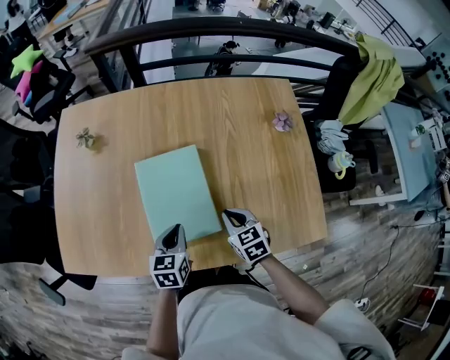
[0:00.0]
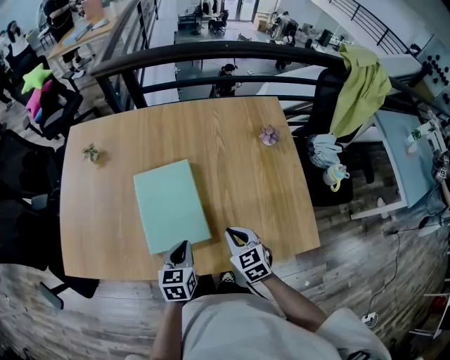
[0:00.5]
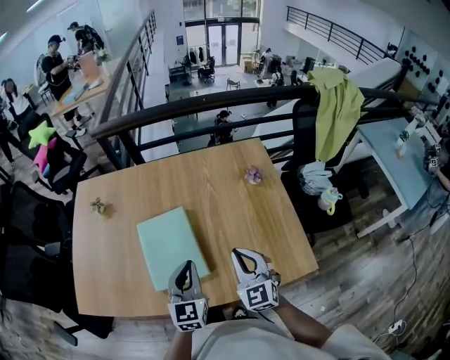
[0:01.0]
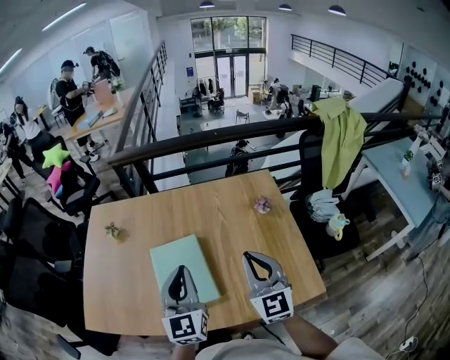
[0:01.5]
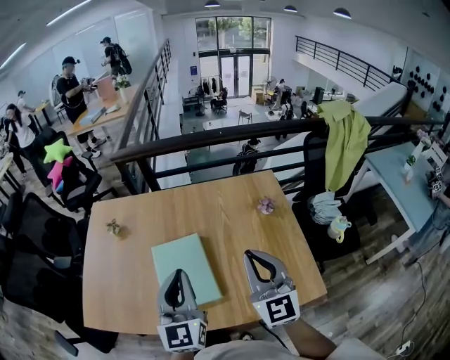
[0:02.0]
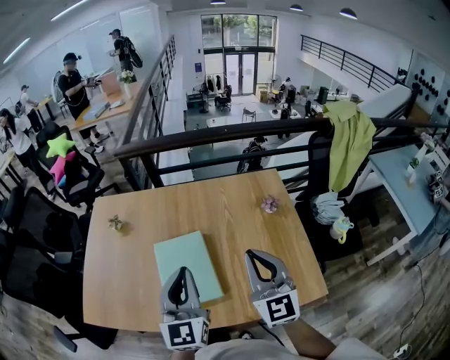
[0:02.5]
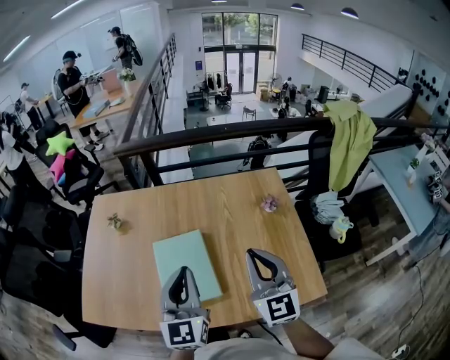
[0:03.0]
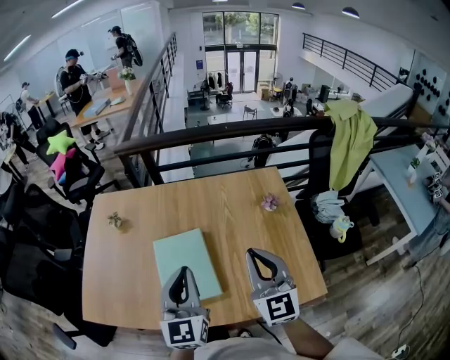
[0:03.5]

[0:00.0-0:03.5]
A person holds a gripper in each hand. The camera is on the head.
0:00.0 to 0:02.0: The two grippers go about 35 cm upward. The right gripper angles its fingers upward, by about 50 degrees. The left gripper angles its fingers upward, by approximately 40 degrees.
0:02.0 to 0:03.5: The grippers stay close to where they were, moving slightly.

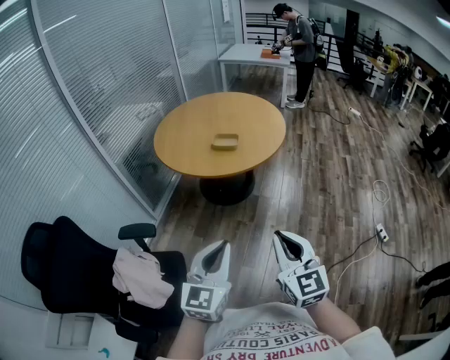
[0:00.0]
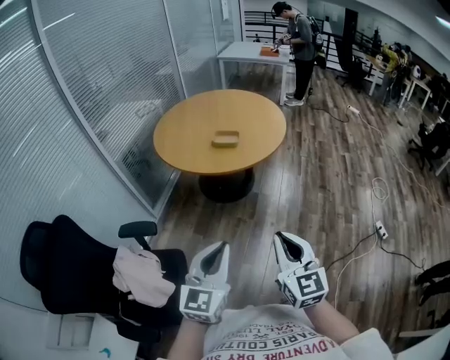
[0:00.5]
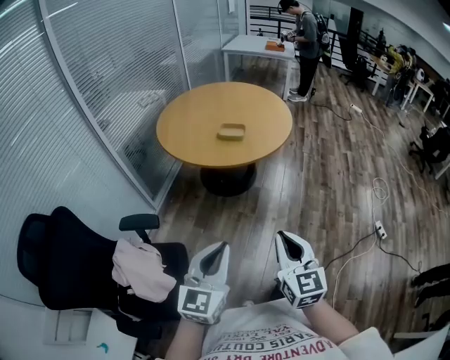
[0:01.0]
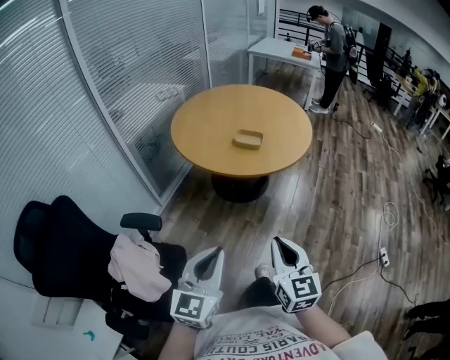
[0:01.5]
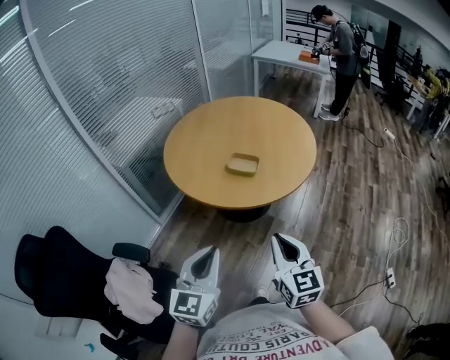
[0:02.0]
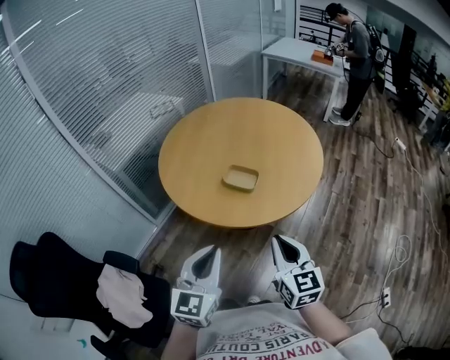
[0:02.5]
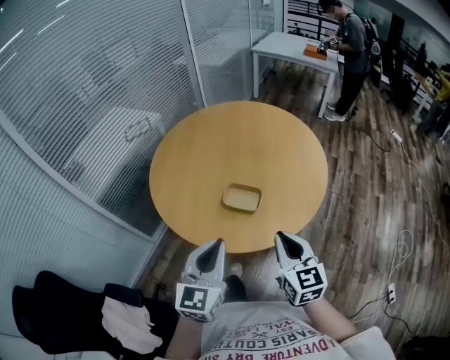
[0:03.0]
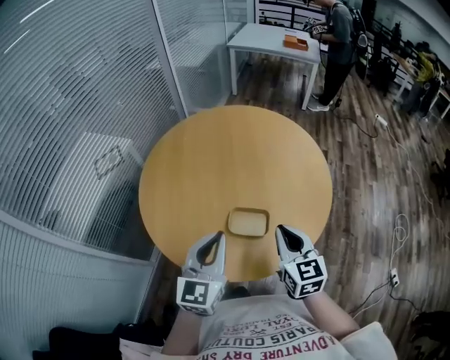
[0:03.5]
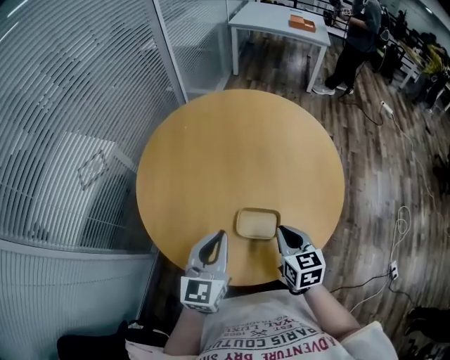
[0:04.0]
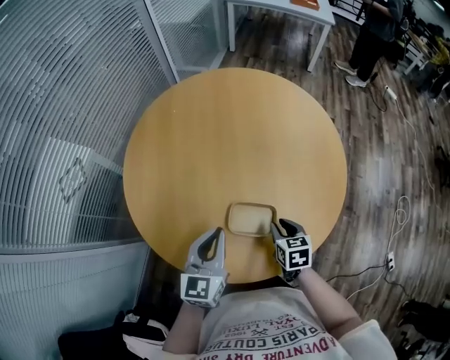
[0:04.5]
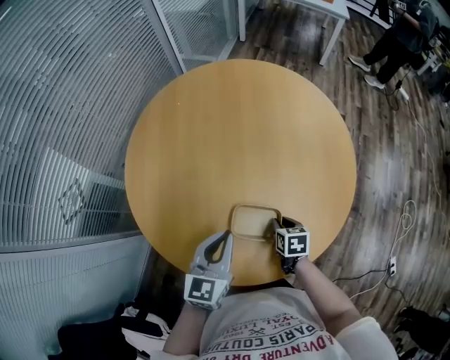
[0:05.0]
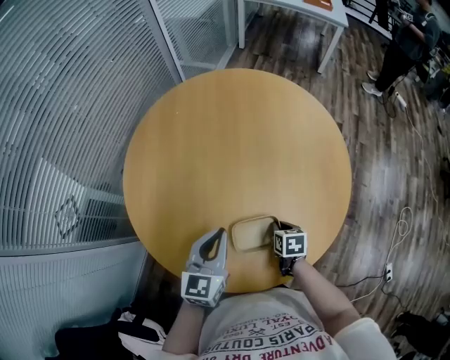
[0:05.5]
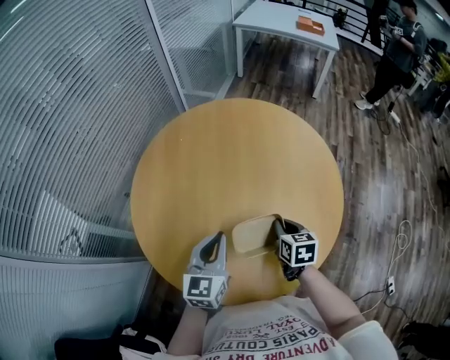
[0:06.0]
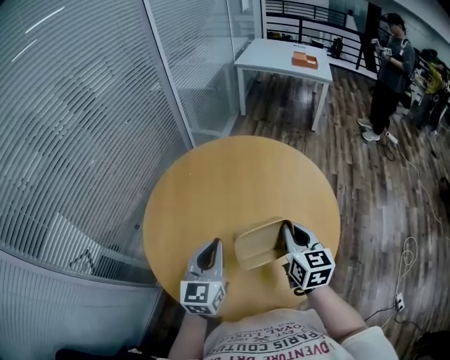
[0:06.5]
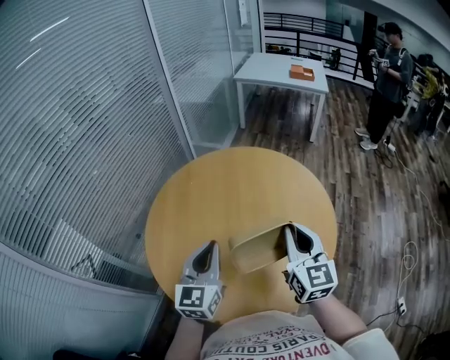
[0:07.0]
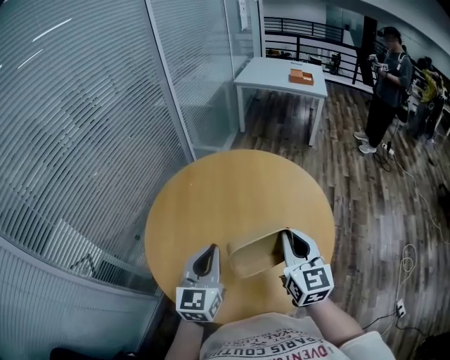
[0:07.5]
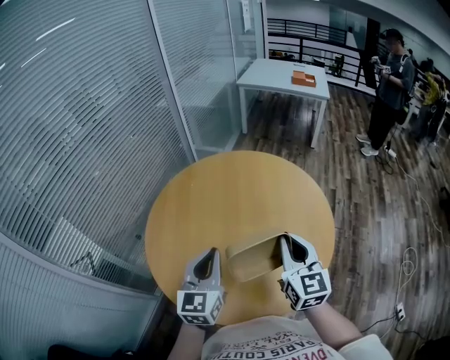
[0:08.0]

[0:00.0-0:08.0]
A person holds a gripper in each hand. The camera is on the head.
0:00.0 to 0:02.0: The two grippers go about 25 cm forward.
0:02.0 to 0:04.0: The two grippers travel together, forward, about 50 cm. The right gripper swivels some 30 degrees.
0:04.0 to 0:06.0: The right gripper moves forward, downward and to the right, about 15 cm, and opens, then closes once more. Meanwhile the left gripper heads forward and downward, covering about 10 cm.
0:06.0 to 0:08.0: The right gripper goes about 25 cm upward, and tilts its fingers roughly 40 degrees upward. The left gripper is displaced upward and backward by some 15 cm.

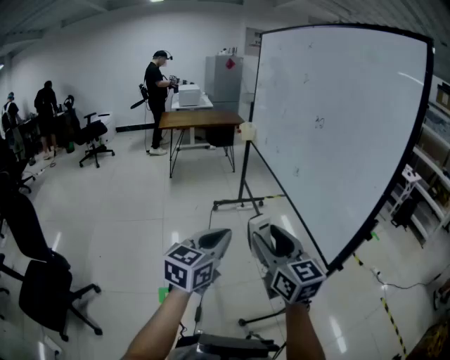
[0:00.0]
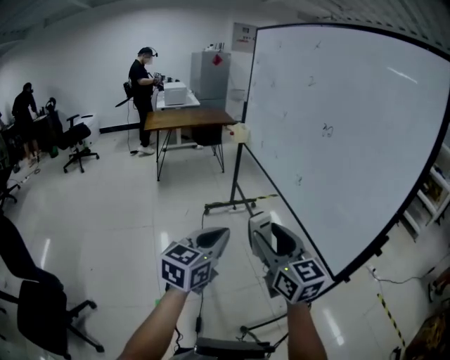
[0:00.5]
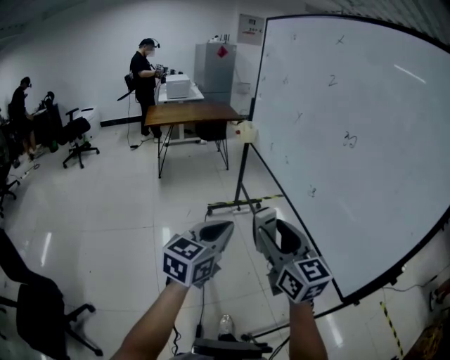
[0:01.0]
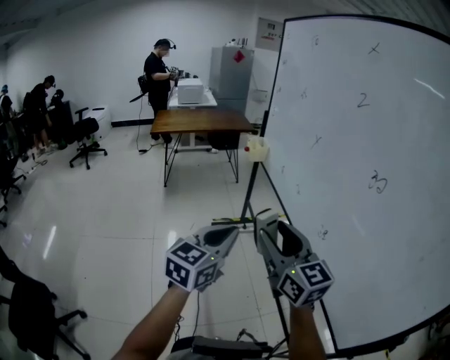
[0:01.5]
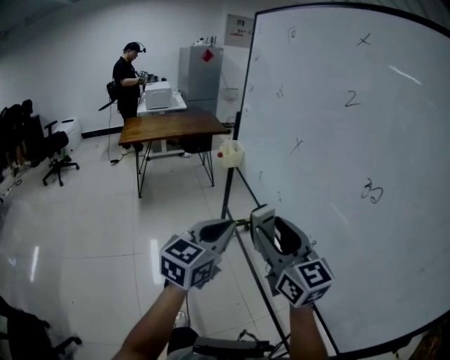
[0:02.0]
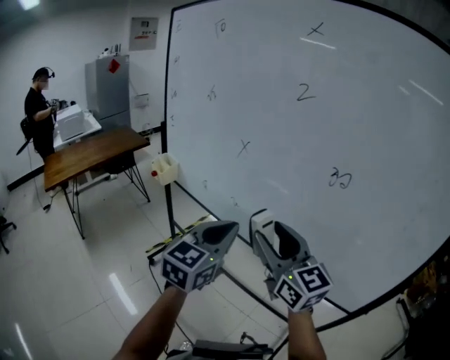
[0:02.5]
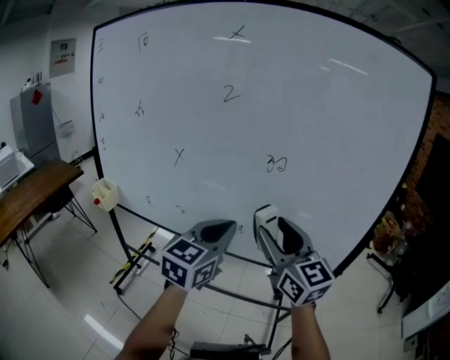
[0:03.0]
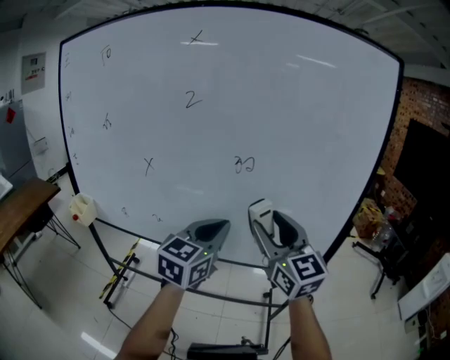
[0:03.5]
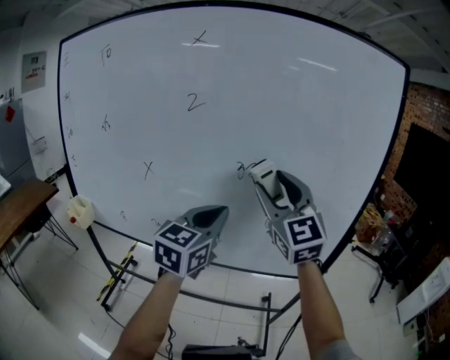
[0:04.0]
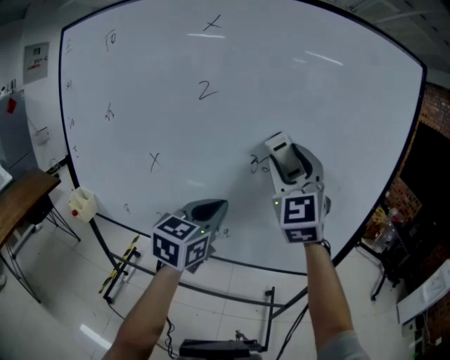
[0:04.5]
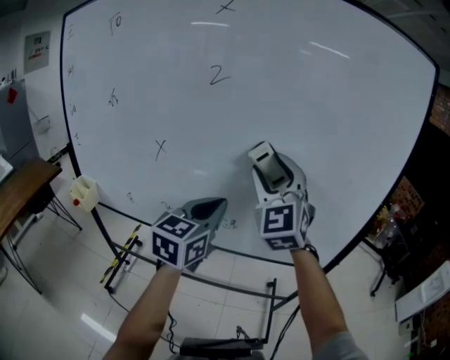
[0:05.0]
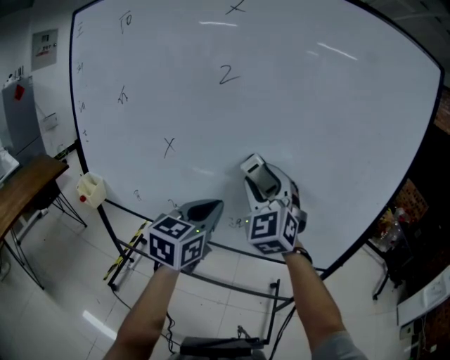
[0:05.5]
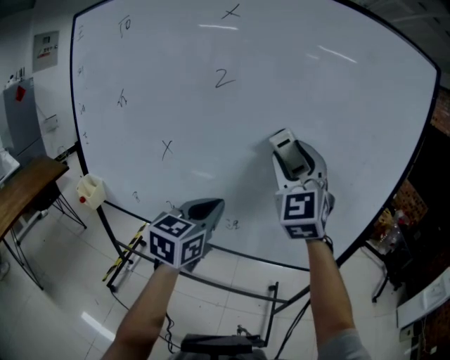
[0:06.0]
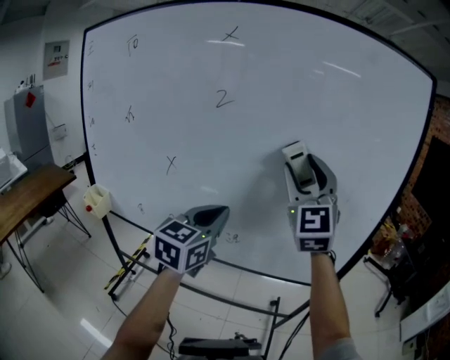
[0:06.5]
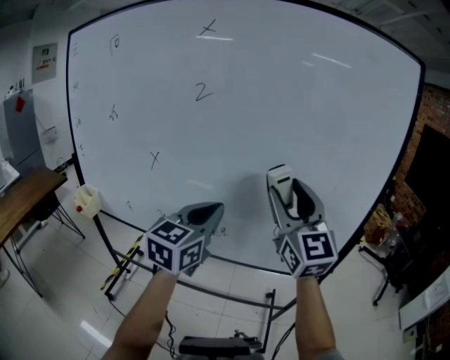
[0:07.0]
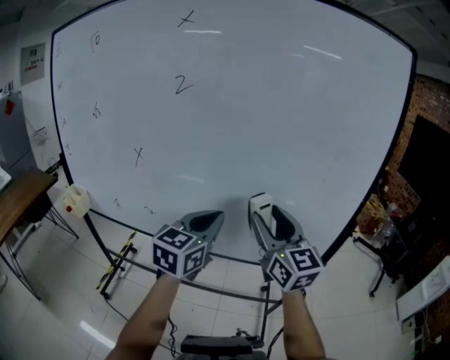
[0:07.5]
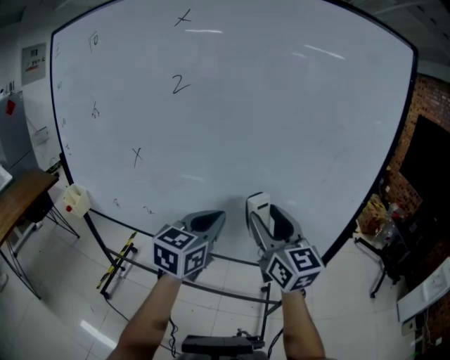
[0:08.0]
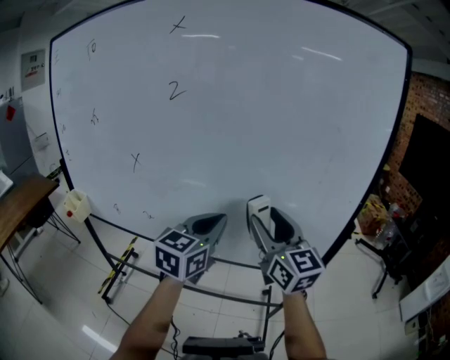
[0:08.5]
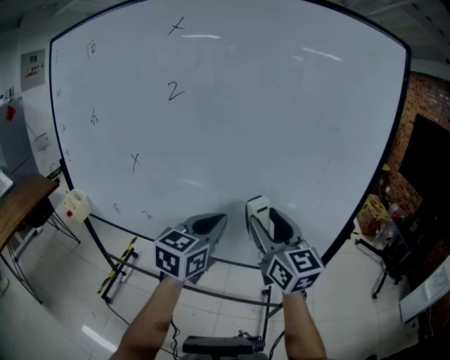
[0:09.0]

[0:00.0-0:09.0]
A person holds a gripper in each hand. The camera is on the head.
0:00.0 to 0:02.0: The two grippers travel together, forward, roughly 40 cm.
0:02.0 to 0:04.5: The left gripper changes place by about 20 cm, and swivels approximately 60 degrees, while the right gripper ends up about 30 cm from where it was, and rotates roughly 90 degrees.
0:04.5 to 0:07.0: The right gripper travels downward by about 5 cm, reaches roughly 10 cm to the left, then returns, and swivels about 30 degrees.
0:07.0 to 0:09.0: The left gripper goes roughly 5 cm to the right, while the right gripper shifts roughly 10 cm downward.

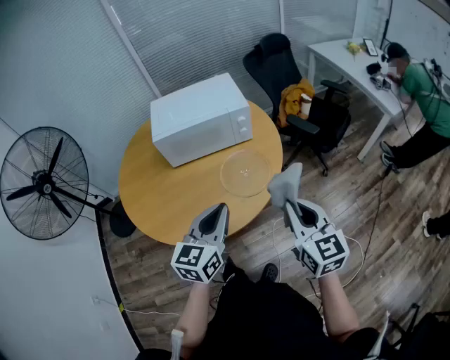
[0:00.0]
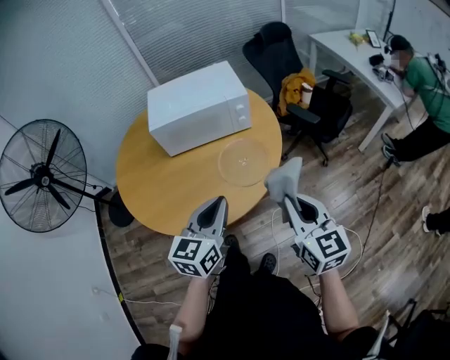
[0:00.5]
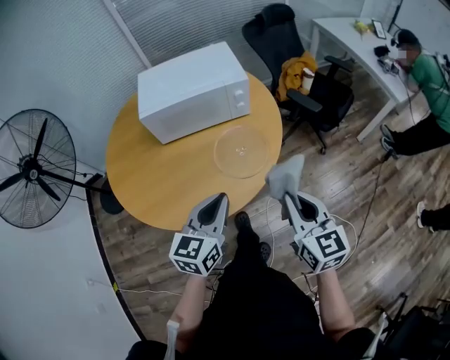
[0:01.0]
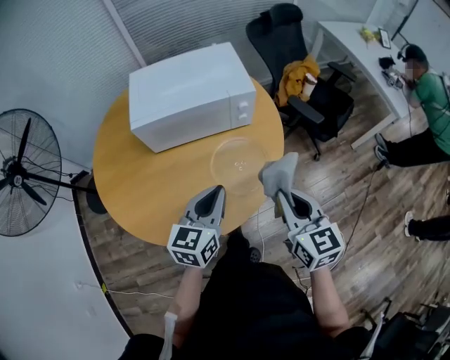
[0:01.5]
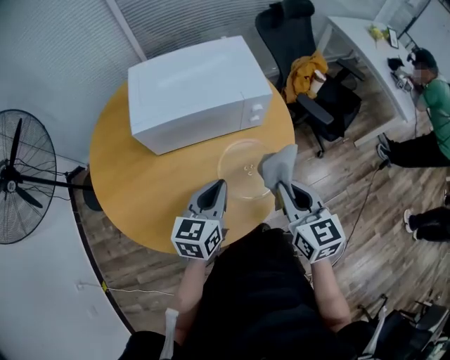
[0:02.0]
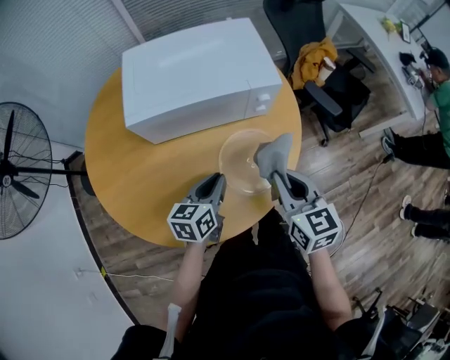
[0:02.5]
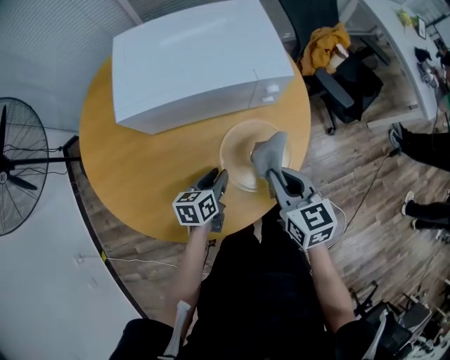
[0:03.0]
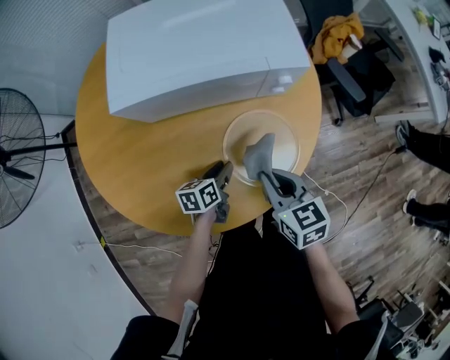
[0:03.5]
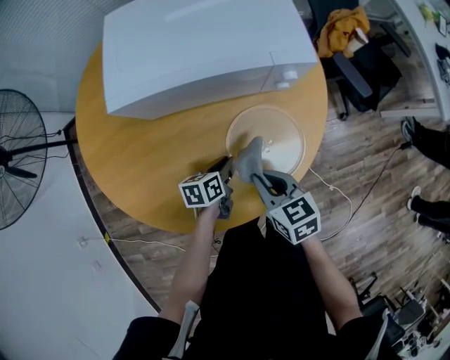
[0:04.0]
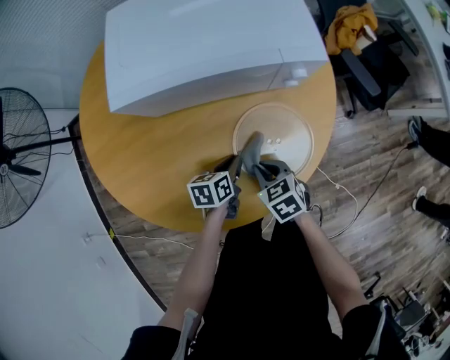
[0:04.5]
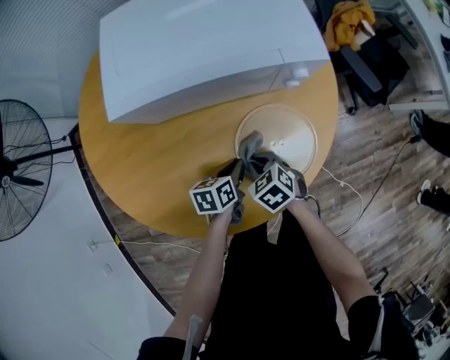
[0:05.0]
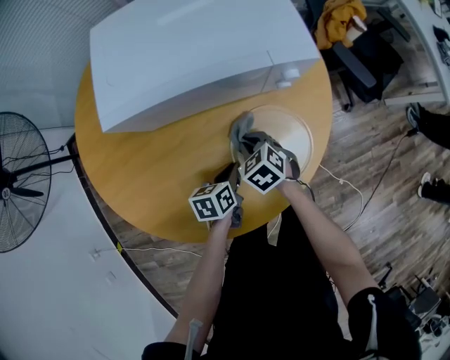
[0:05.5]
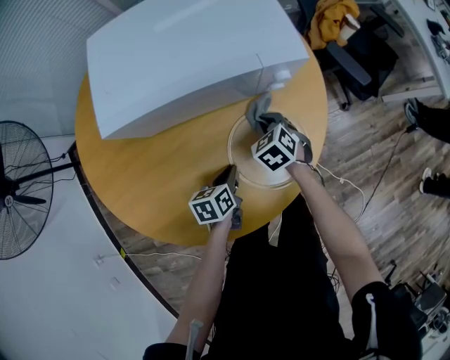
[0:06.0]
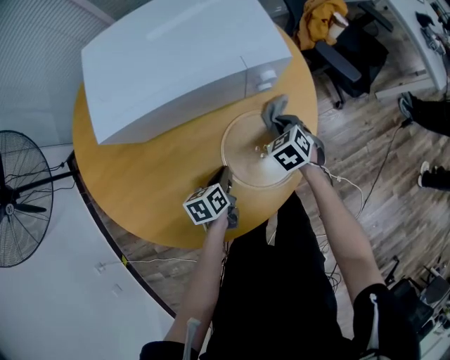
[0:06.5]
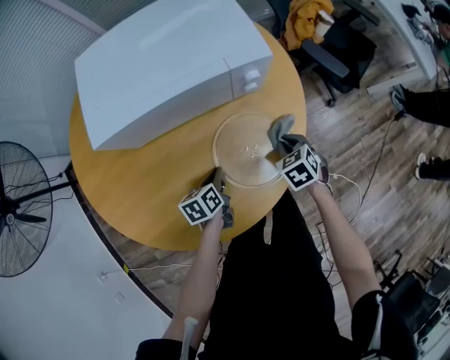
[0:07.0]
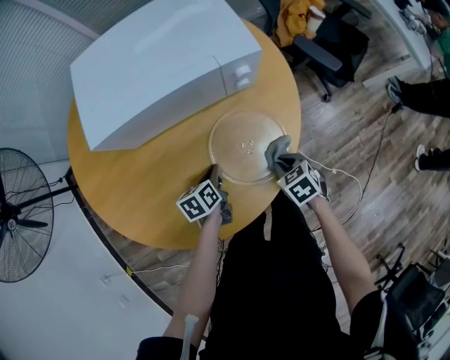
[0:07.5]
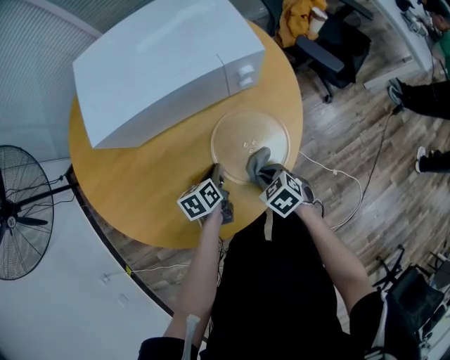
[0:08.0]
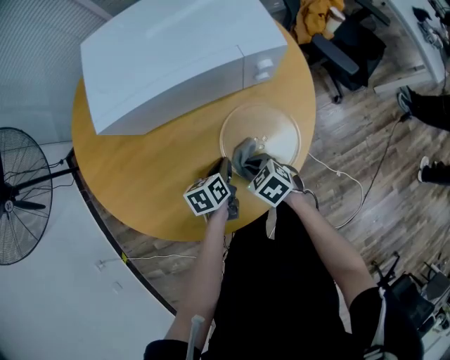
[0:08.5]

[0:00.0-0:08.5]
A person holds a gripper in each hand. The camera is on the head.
0:00.0 to 0:02.0: The right gripper moves forward, roughly 20 cm. The left gripper heads forward and downward, covering approximately 25 cm.
0:02.0 to 0:04.0: The right gripper shifts some 20 cm downward and to the left, and turns by approximately 30 degrees. The left gripper heads downward, covering about 25 cm, and rotates about 40 degrees.
0:04.0 to 0:06.5: The right gripper shifts roughly 20 cm forward, downward and to the right, and swivels roughly 40 degrees.
0:06.5 to 0:08.5: The right gripper changes place by approximately 20 cm, and rotates about 30 degrees.
